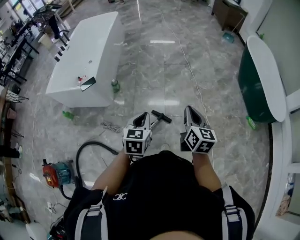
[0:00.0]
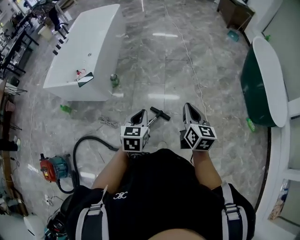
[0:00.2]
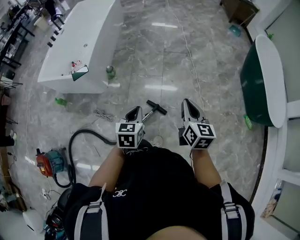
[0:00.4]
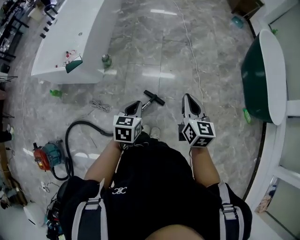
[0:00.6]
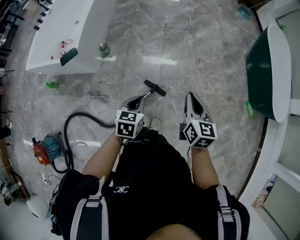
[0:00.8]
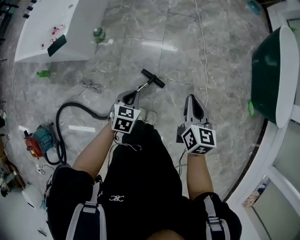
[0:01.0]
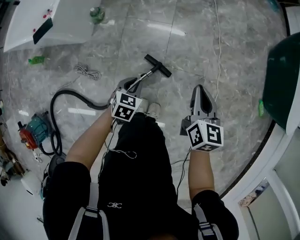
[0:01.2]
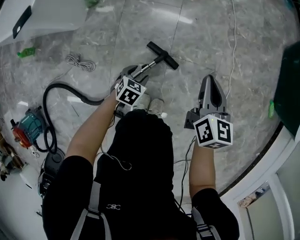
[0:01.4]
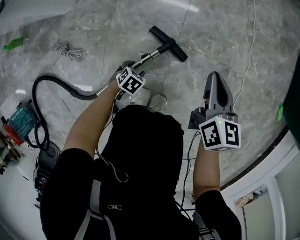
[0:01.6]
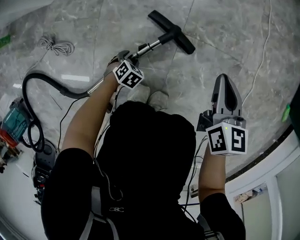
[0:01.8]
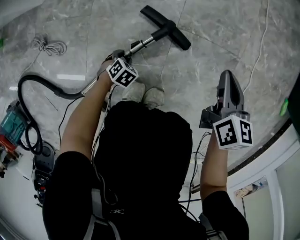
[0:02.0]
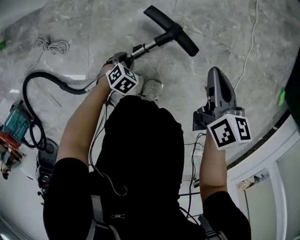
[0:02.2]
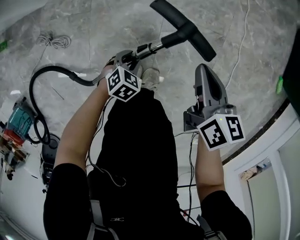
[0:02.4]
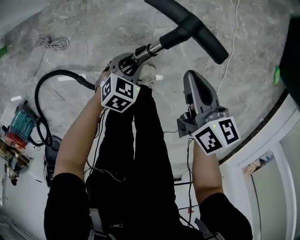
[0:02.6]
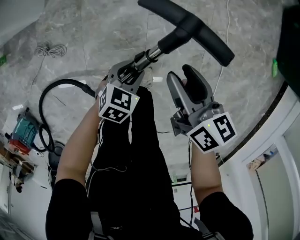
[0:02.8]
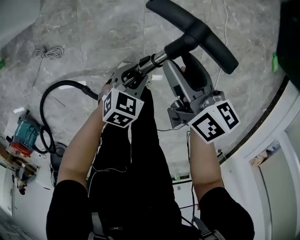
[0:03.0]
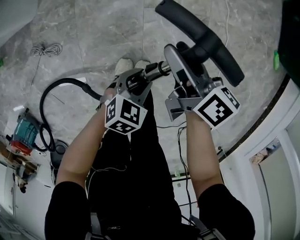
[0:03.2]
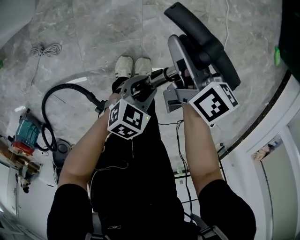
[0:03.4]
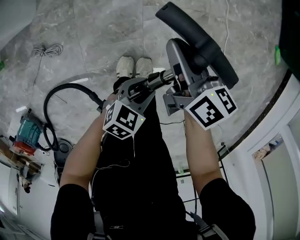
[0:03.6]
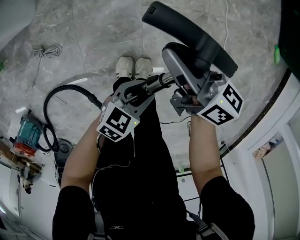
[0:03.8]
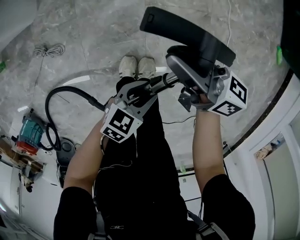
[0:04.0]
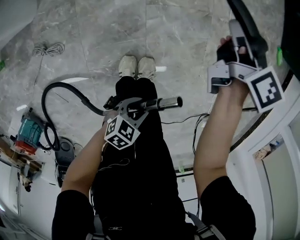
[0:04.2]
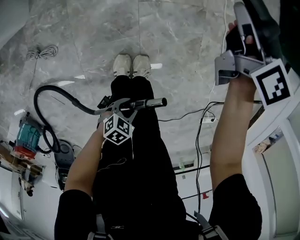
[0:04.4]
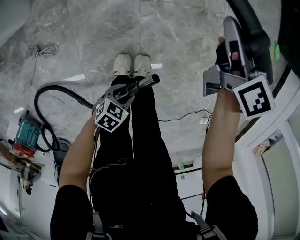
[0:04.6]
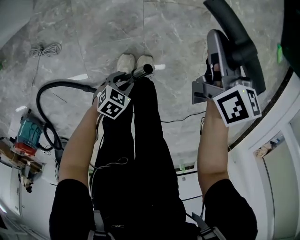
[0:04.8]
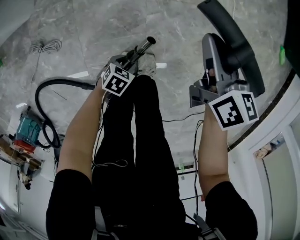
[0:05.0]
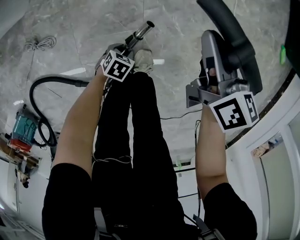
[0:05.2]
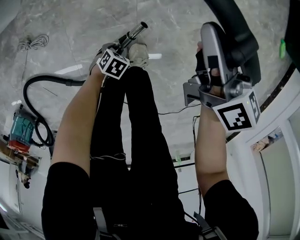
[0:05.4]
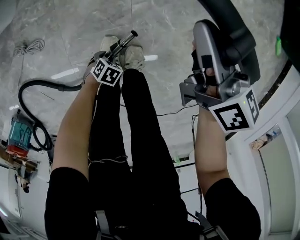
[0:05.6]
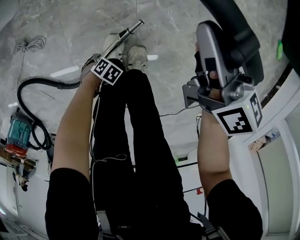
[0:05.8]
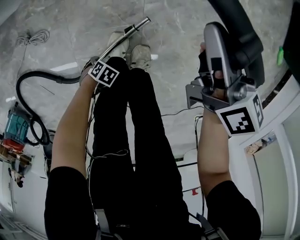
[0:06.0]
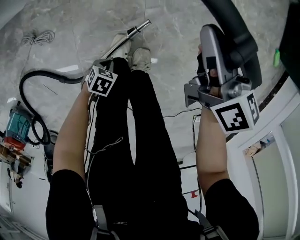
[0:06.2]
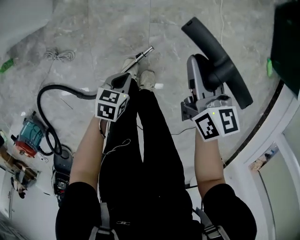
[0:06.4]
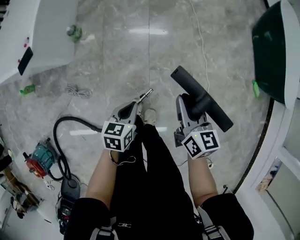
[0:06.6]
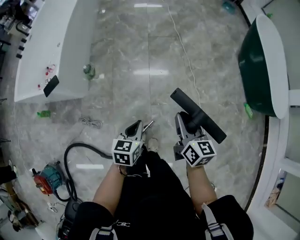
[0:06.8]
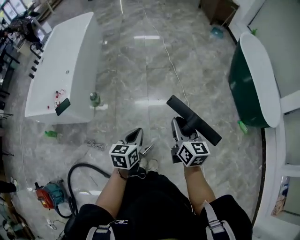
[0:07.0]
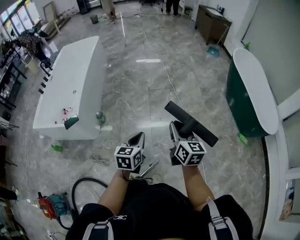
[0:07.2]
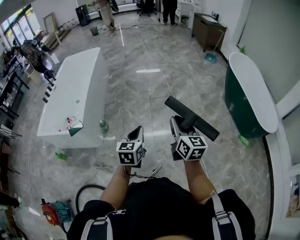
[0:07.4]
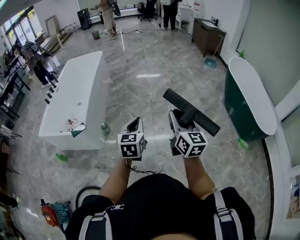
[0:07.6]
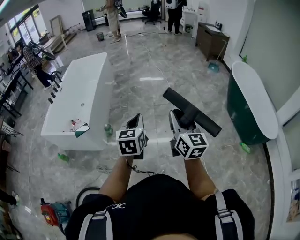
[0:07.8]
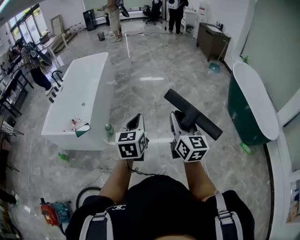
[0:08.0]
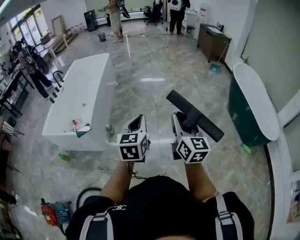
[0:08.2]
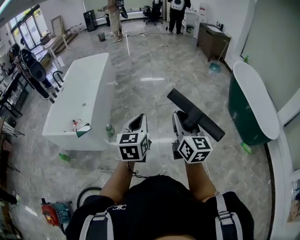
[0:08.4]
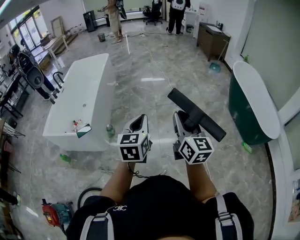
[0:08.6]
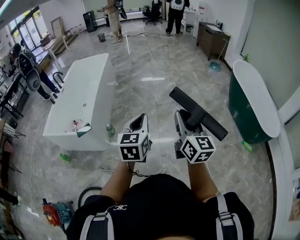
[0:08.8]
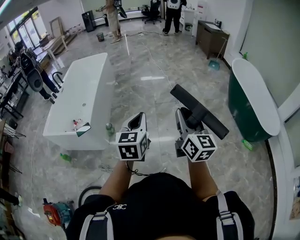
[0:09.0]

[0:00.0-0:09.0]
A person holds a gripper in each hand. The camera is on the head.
0:00.0 to 0:01.6: Both grippers move downward, about 70 cm. The left gripper angles its fingers downward, by about 40 degrees, and opens.
0:01.6 to 0:03.0: The left gripper goes about 25 cm upward, and turns by approximately 20 degrees. Meanwhile the right gripper travels upward by approximately 10 cm, rotates roughly 30 degrees, and opens its fingers.
0:03.0 to 0:04.4: The right gripper changes place by roughly 20 cm, and closes its fingers; the left gripper shifts by approximately 20 cm, and rotates roughly 30 degrees.
0:04.4 to 0:06.0: The right gripper moves about 15 cm. The left gripper is displaced downward by approximately 20 cm, and rotates approximately 30 degrees.
0:06.0 to 0:07.6: The two grippers go approximately 80 cm upward. The right gripper turns by some 40 degrees. The left gripper tilts its fingers roughly 50 degrees upward, and closes up.
0:07.6 to 0:09.0: The left gripper moves upward, roughly 5 cm; the right gripper moves about 5 cm.

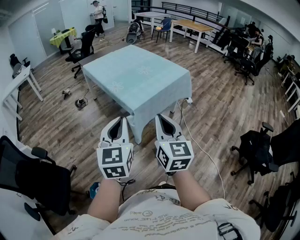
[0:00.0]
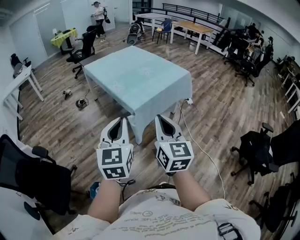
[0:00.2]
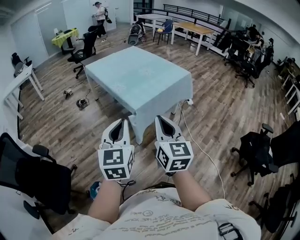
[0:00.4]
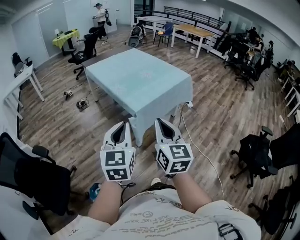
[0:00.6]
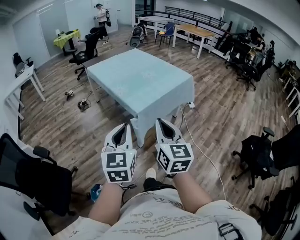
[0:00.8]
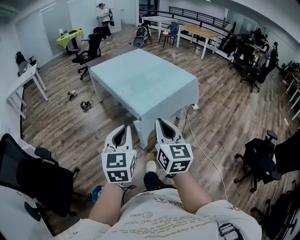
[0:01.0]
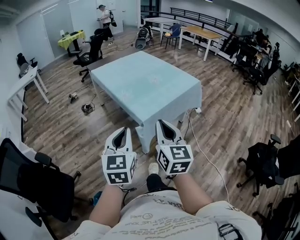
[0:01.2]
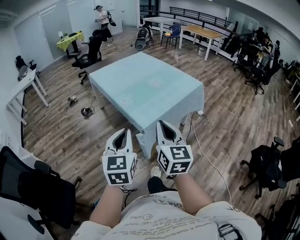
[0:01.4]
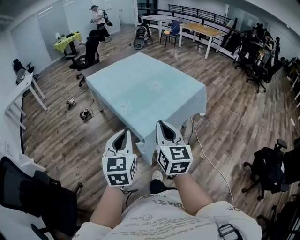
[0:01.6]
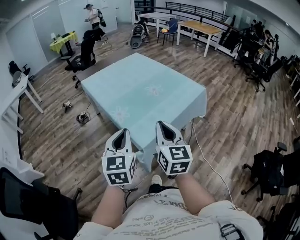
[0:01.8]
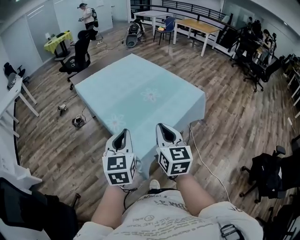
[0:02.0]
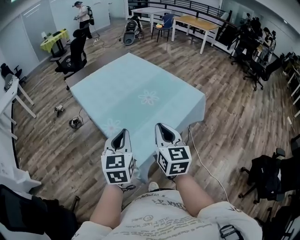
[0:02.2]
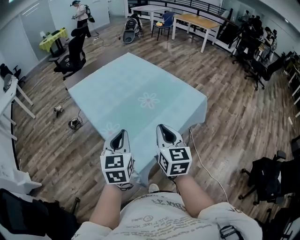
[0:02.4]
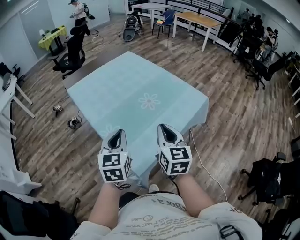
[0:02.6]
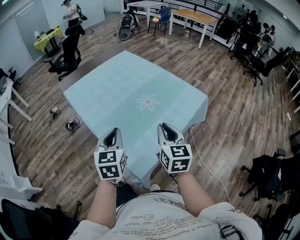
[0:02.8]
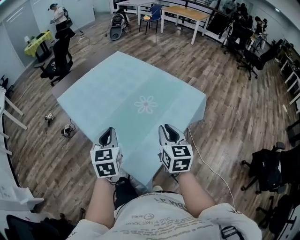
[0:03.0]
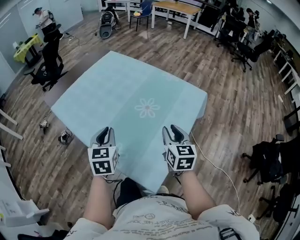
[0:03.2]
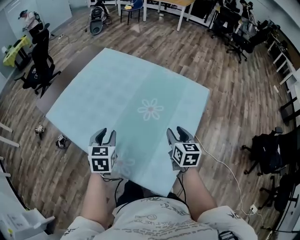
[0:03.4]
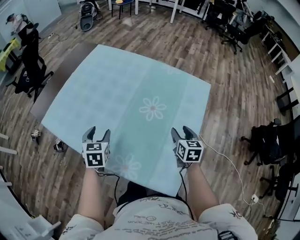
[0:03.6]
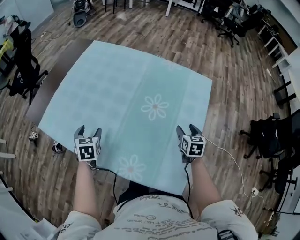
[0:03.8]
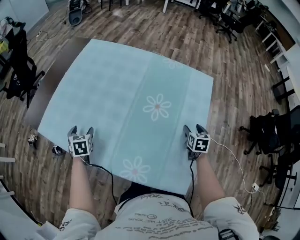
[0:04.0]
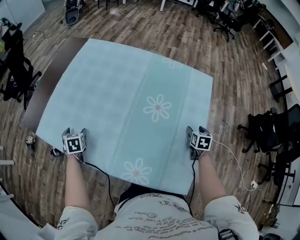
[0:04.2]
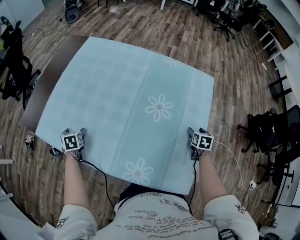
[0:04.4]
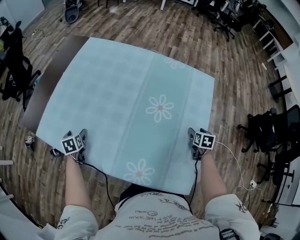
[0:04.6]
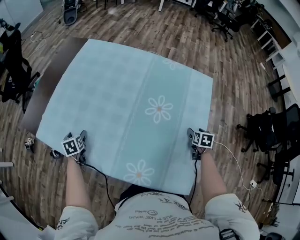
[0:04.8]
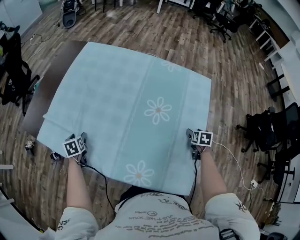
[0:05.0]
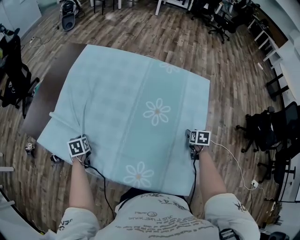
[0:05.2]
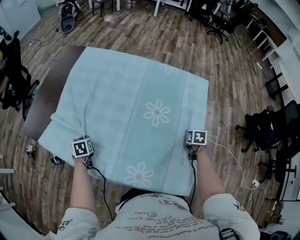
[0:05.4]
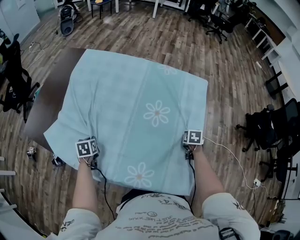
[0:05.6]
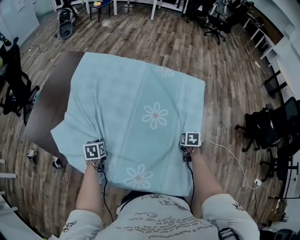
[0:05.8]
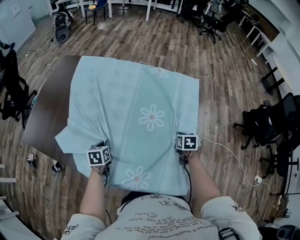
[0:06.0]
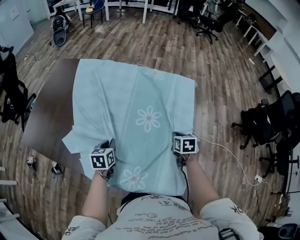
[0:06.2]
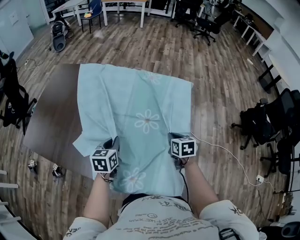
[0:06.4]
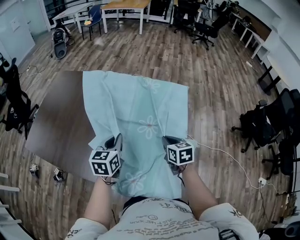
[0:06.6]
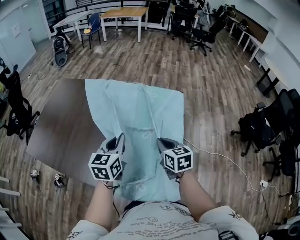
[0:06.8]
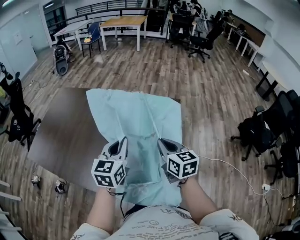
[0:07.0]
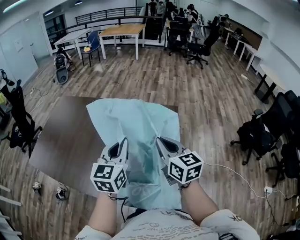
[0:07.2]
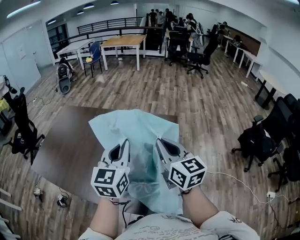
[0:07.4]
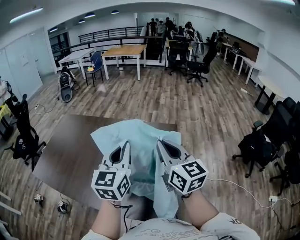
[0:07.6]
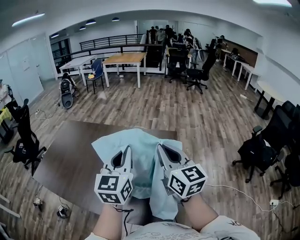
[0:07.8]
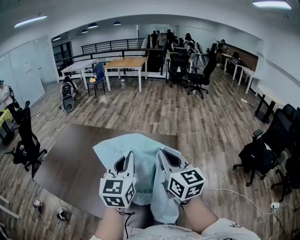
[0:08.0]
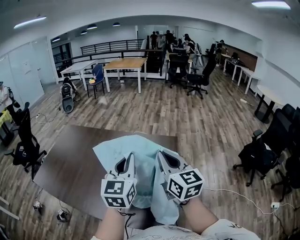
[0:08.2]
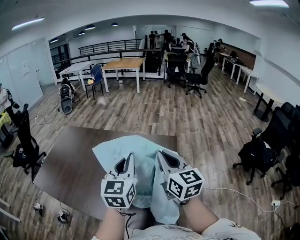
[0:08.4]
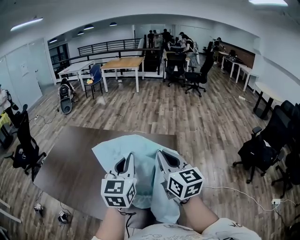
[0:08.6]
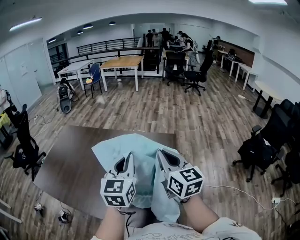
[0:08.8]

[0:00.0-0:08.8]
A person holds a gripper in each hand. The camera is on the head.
0:00.0 to 0:01.4: The grippers both shift forward by about 15 cm.
0:01.4 to 0:03.0: The pair of grippers is taken forward, approximately 40 cm.
0:03.0 to 0:04.4: The right gripper is displaced downward and forward by approximately 30 cm, tips its fingers downward by roughly 40 degrees, and opens its fingers. Meanwhile the left gripper moves to the left, downward and forward, about 50 cm, tips its fingers downward by roughly 30 degrees, and opens its fingers.
0:04.4 to 0:05.8: The right gripper closes. Meanwhile the left gripper is displaced to the right by roughly 15 cm, and closes its fingers.
0:05.8 to 0:07.4: The right gripper shifts roughly 40 cm upward, and angles its fingers upward, by some 60 degrees. Meanwhile the left gripper goes approximately 50 cm upward and to the right, and points its fingers approximately 50 degrees further upward.
0:07.4 to 0:08.8: The grippers move only a little.

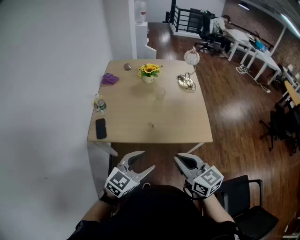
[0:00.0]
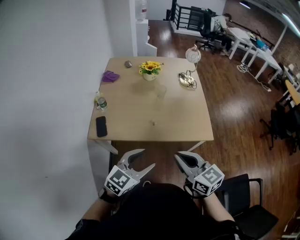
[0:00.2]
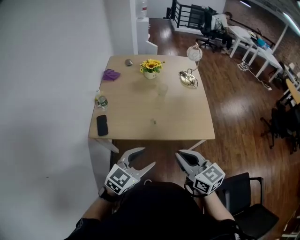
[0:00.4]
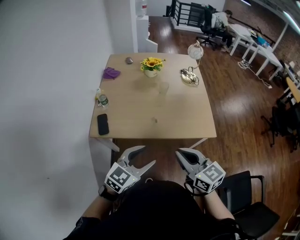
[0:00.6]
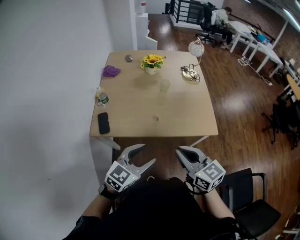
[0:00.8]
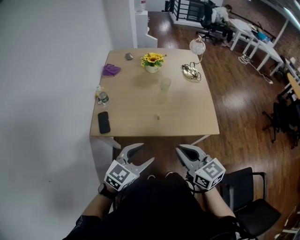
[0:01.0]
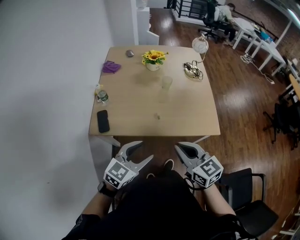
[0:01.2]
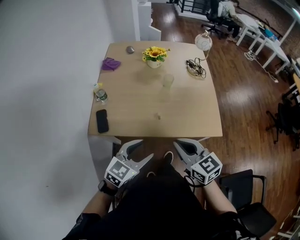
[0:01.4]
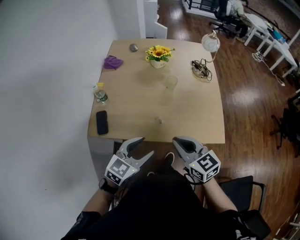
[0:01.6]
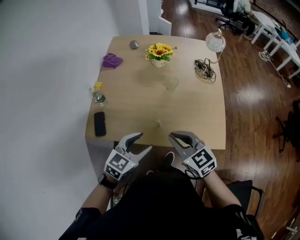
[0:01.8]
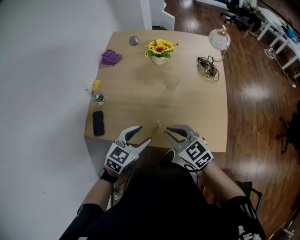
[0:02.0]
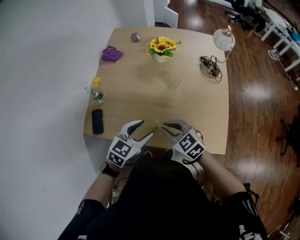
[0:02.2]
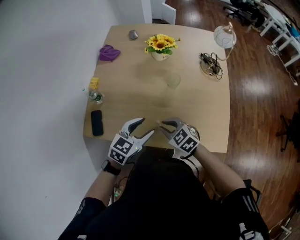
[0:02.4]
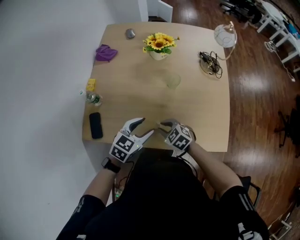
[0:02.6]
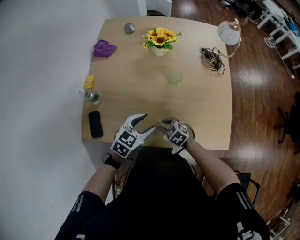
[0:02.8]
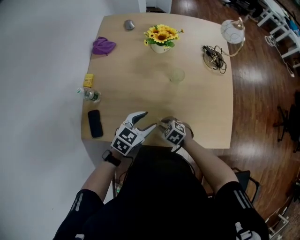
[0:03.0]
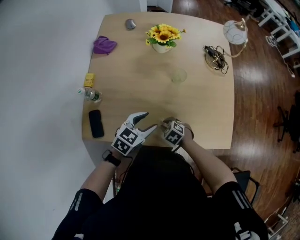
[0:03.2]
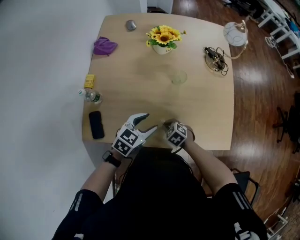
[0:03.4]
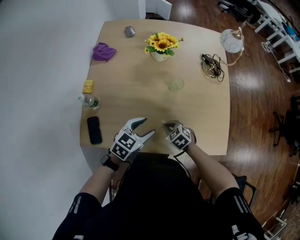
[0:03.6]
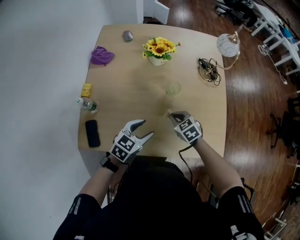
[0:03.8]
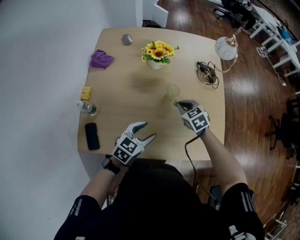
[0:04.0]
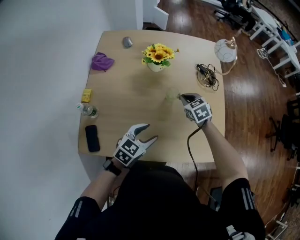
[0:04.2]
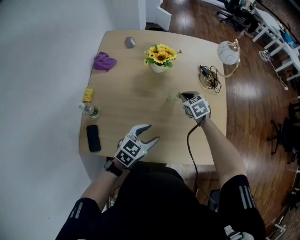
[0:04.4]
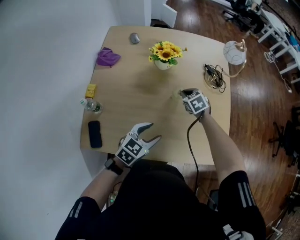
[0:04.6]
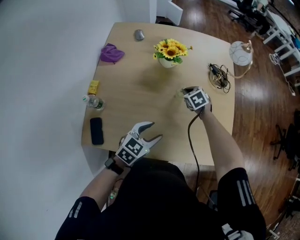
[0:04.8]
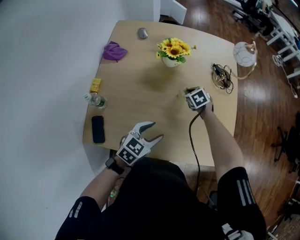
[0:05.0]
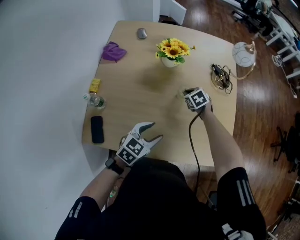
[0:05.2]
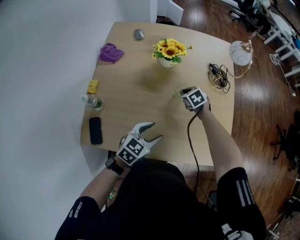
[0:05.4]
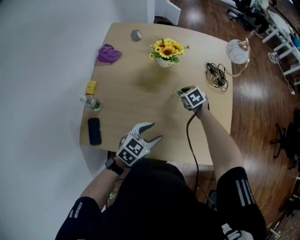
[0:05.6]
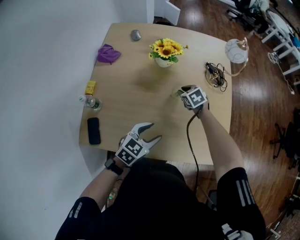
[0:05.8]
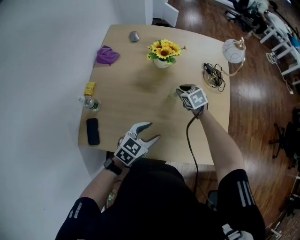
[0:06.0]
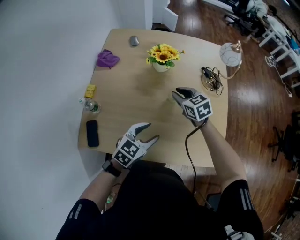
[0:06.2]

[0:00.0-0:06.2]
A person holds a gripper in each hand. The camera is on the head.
0:00.0 to 0:01.6: The two grippers go roughly 15 cm forward and downward.
0:01.6 to 0:03.2: The left gripper is displaced forward and downward by some 25 cm; the right gripper shifts some 35 cm downward and forward, tilts its fingers some 50 degrees downward, and opens.
0:03.2 to 0:04.6: The right gripper travels forward and upward by some 30 cm, changes its angle by roughly 20 degrees, and closes up.
0:04.6 to 0:06.2: The right gripper is displaced upward by roughly 10 cm, changes its angle by about 20 degrees, and opens up.
